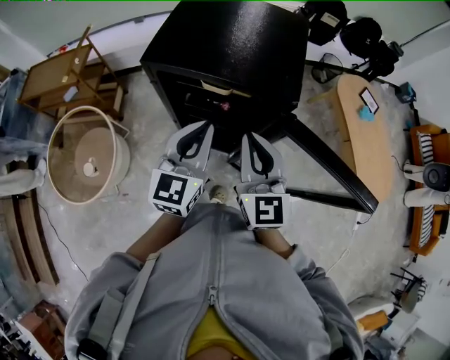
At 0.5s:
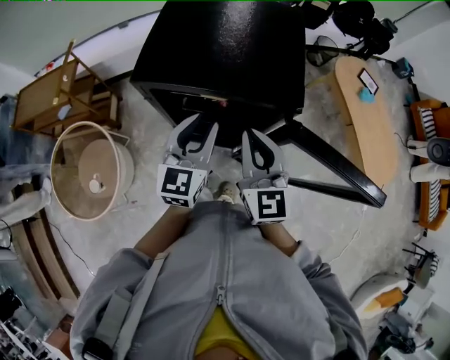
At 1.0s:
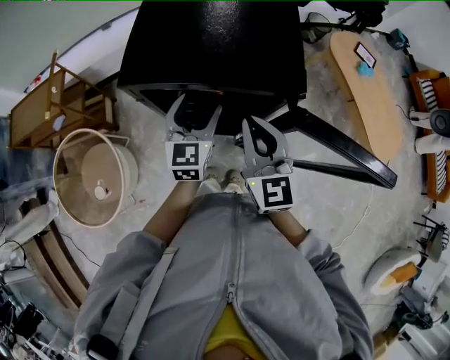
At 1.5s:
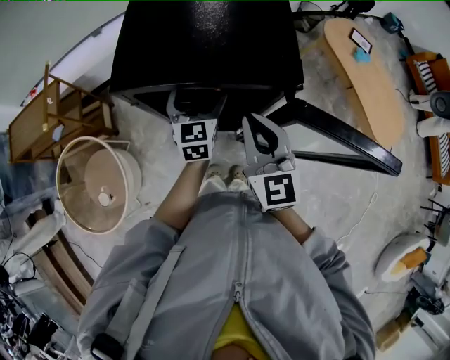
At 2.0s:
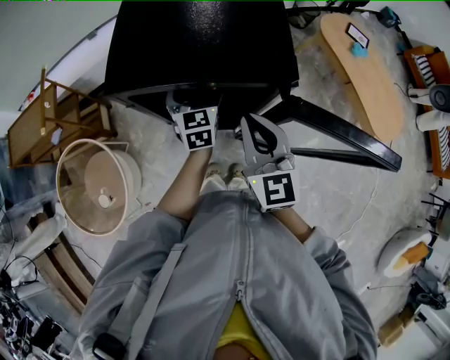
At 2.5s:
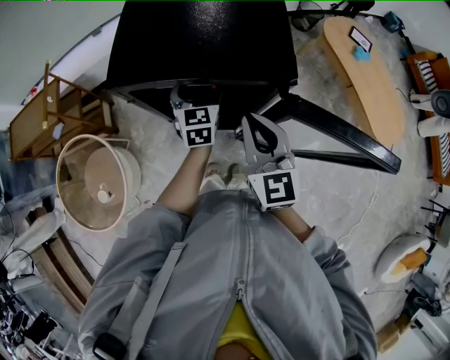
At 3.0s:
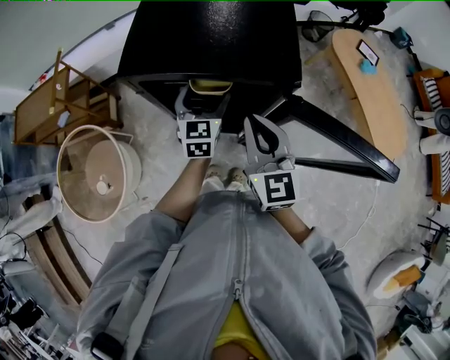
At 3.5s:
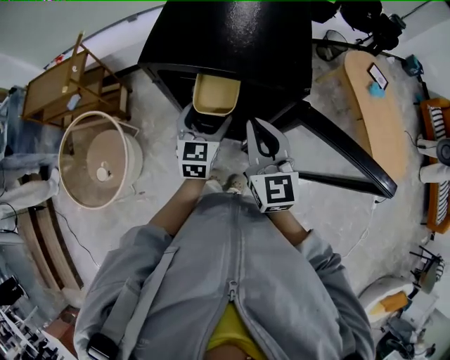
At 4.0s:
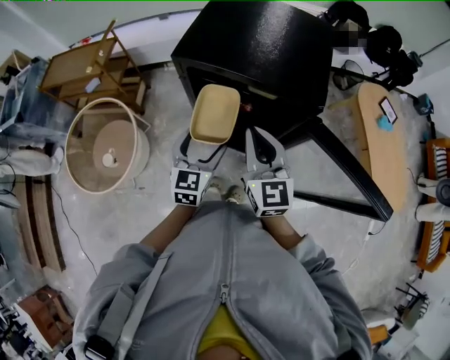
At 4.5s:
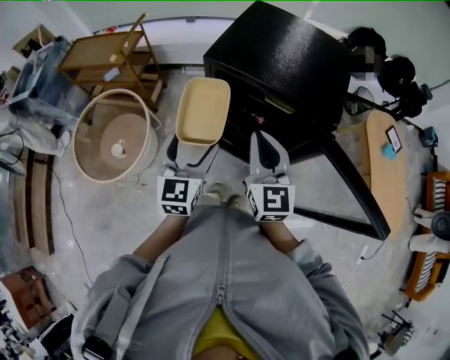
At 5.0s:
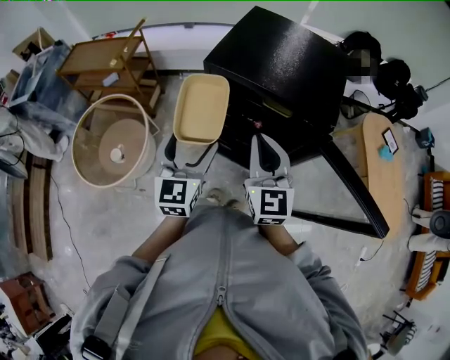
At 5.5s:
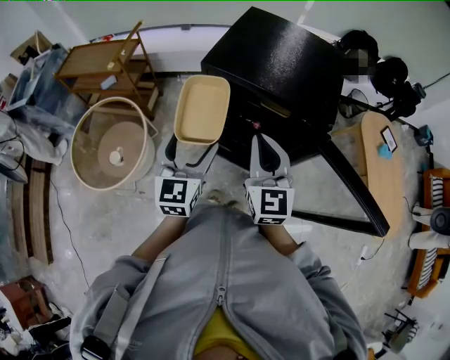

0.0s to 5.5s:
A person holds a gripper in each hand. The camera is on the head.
0.0s to 2.0s: The right gripper moves forward, some 5 cm. Meanwhile the left gripper heads forward and downward, covering roughly 25 cm, and opens up.
2.0s to 3.5s: The left gripper is displaced backward by some 10 cm.
3.5s to 5.5s: The right gripper is displaced to the left by about 5 cm; the left gripper shifts roughly 20 cm to the left, upward and backward.

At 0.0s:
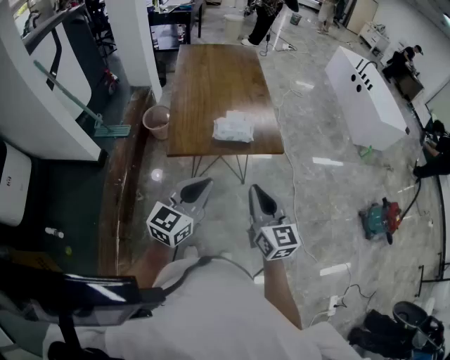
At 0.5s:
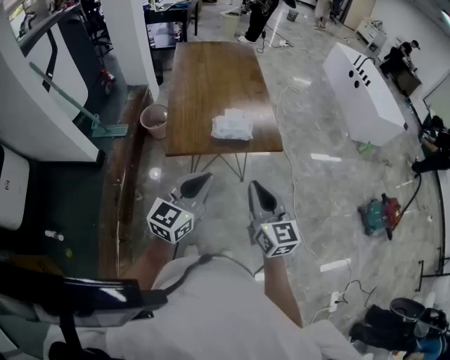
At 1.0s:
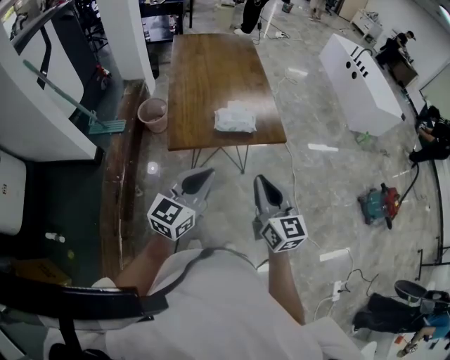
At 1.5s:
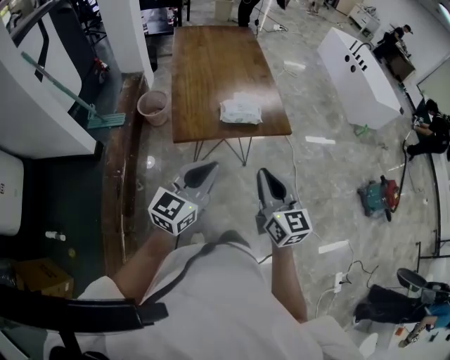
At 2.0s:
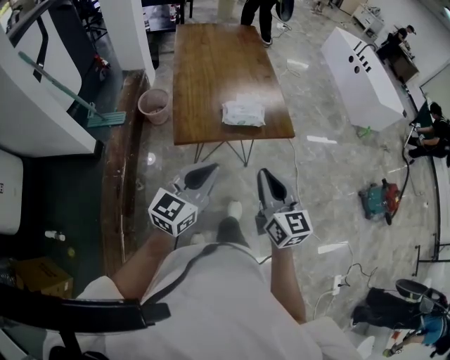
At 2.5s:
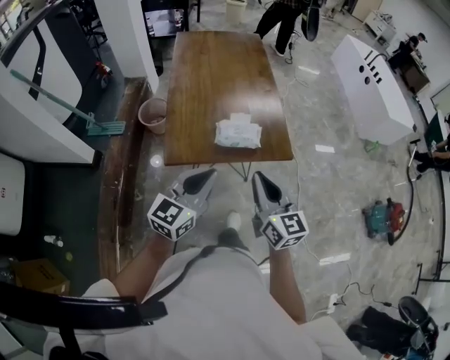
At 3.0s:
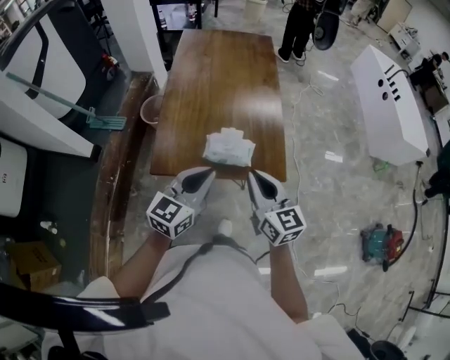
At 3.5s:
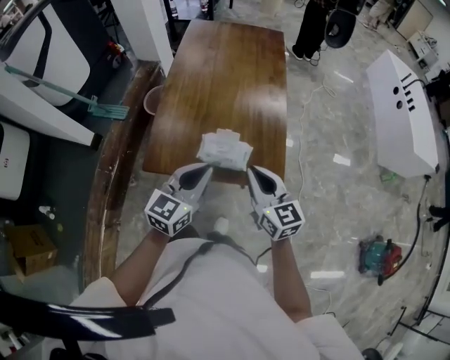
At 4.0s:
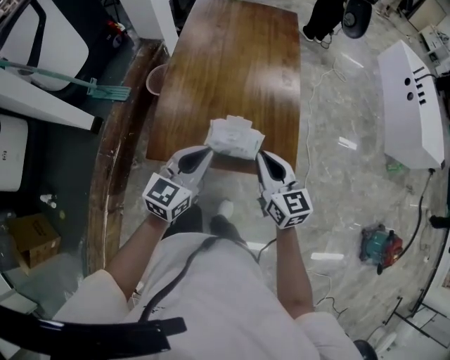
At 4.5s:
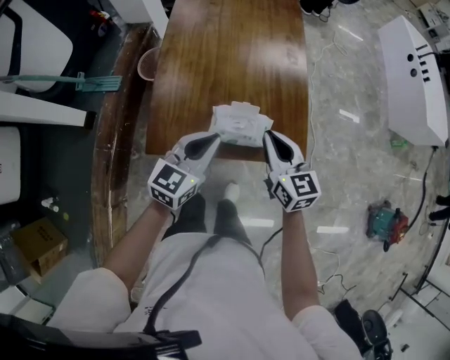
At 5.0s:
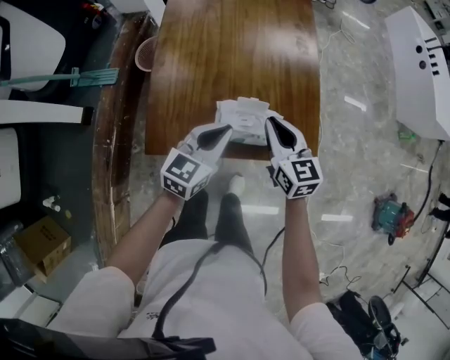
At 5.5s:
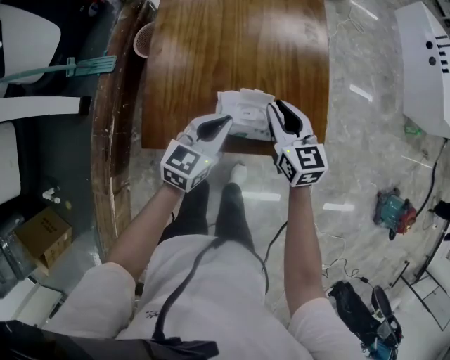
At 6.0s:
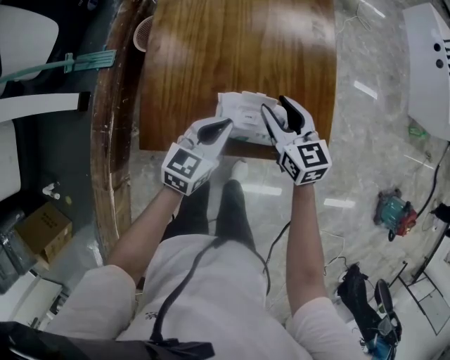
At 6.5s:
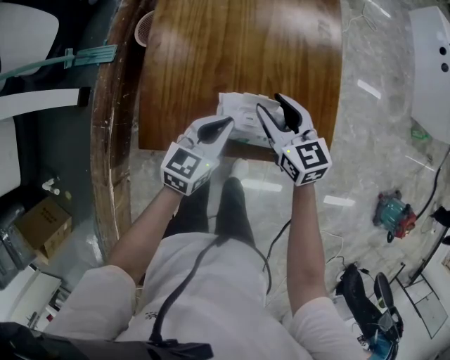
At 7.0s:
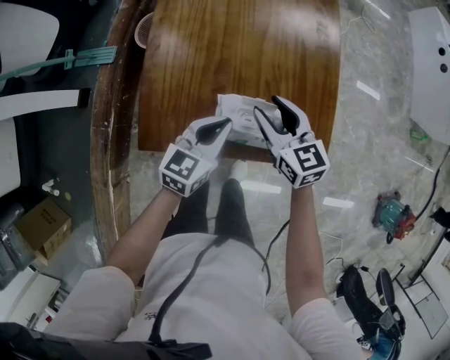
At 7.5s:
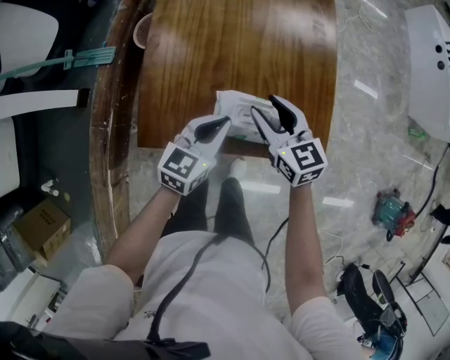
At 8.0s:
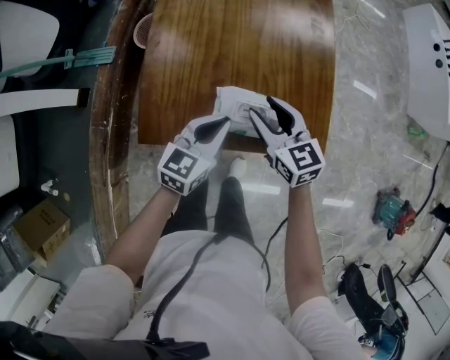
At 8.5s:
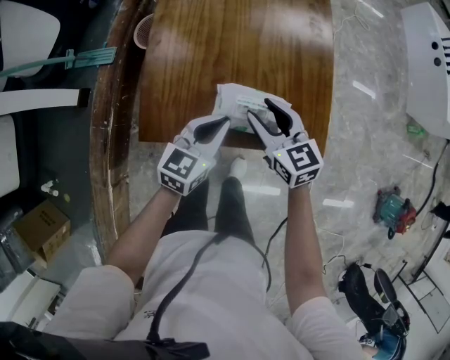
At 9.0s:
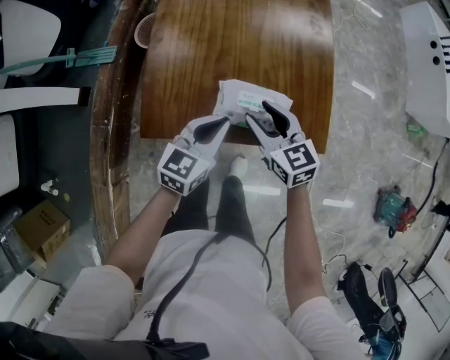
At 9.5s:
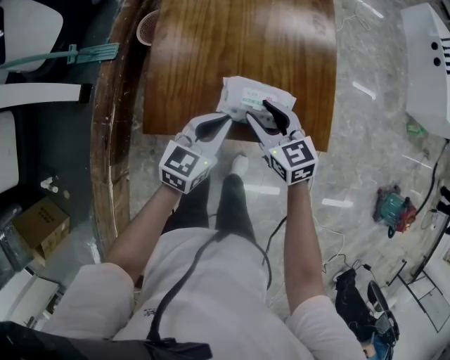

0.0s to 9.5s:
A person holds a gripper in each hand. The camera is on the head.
0.0s to 2.0s: The grippers both shift to the left by roughly 5 cm.
2.0s to 4.0s: The grippers both shift forward by some 30 cm. The right gripper turns by some 20 degrees.
4.0s to 5.5s: The two grippers go about 15 cm downward and forward.
5.5s to 7.5s: The right gripper opens its fingers.
7.5s to 9.5s: The right gripper moves backward, approximately 5 cm.

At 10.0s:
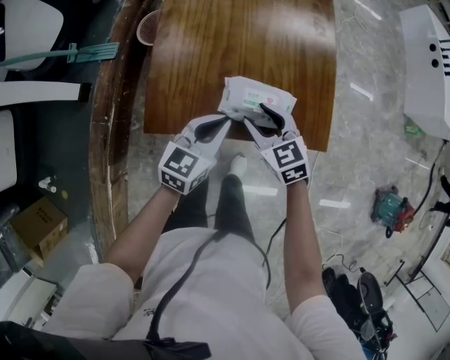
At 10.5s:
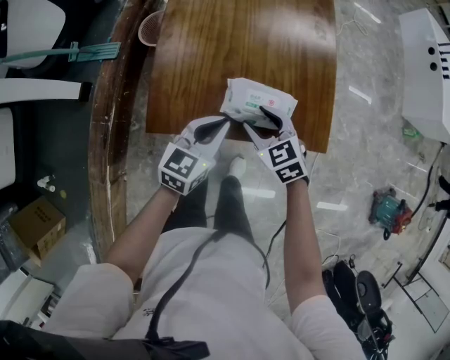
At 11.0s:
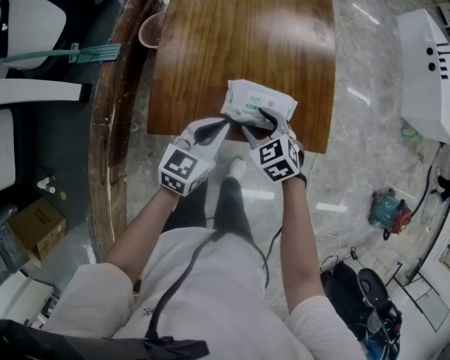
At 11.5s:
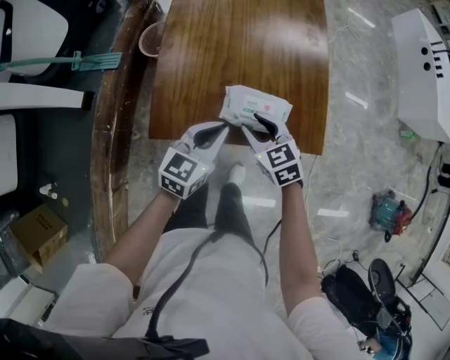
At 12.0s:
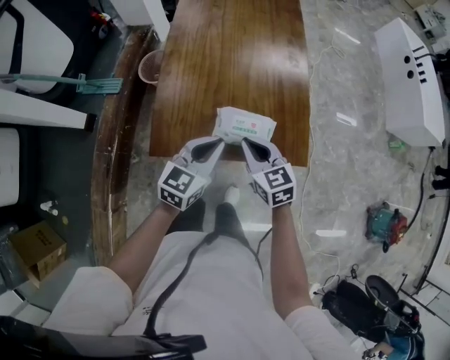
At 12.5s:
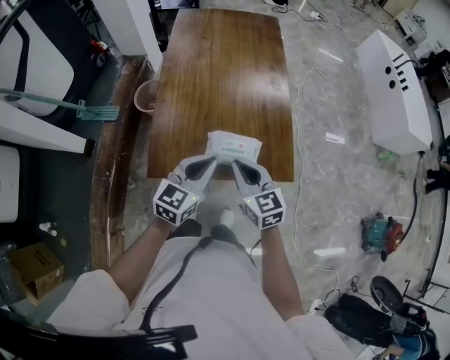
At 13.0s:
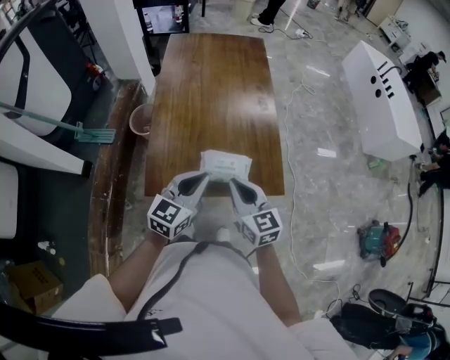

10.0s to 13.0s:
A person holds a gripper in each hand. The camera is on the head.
10.0s to 11.5s: The grippers stay close to where they were, moving slightly.
11.5s to 13.0s: The two grippers go approximately 15 cm upward. The right gripper turns by approximately 30 degrees, and closes.

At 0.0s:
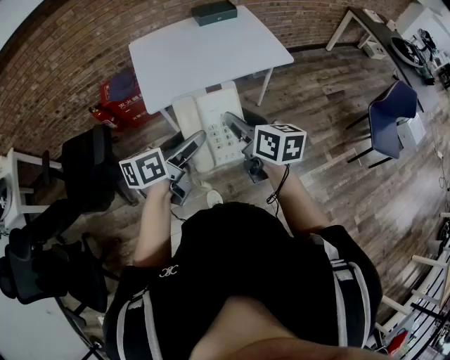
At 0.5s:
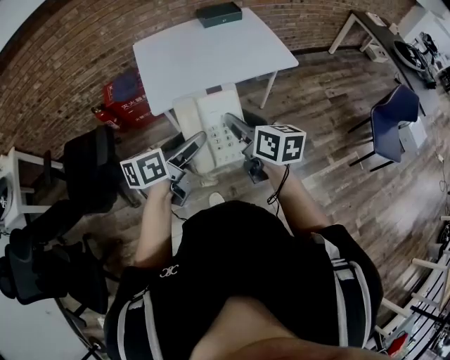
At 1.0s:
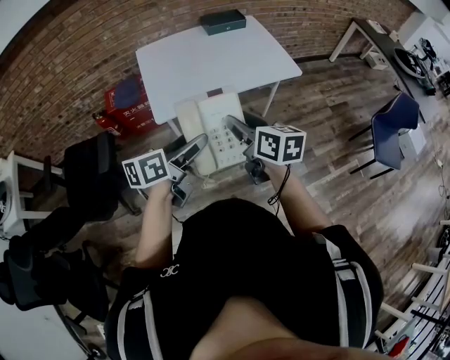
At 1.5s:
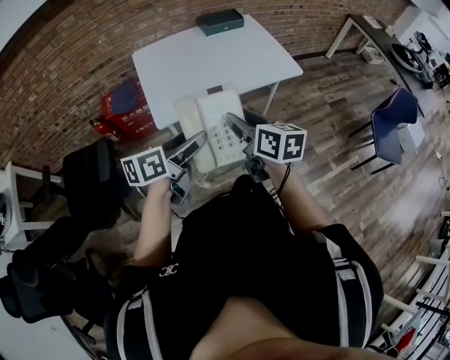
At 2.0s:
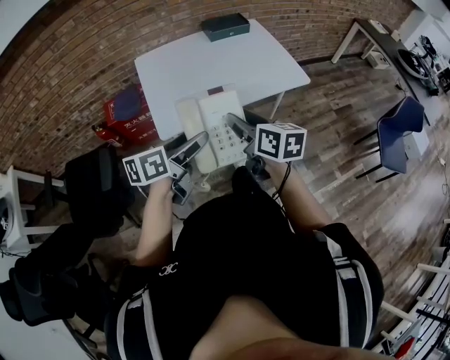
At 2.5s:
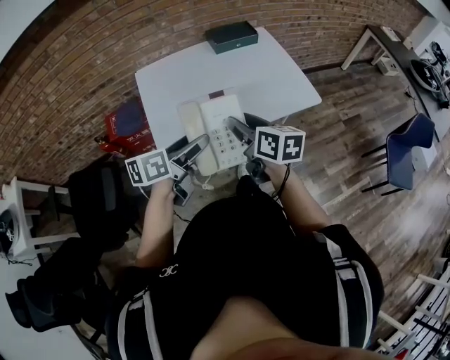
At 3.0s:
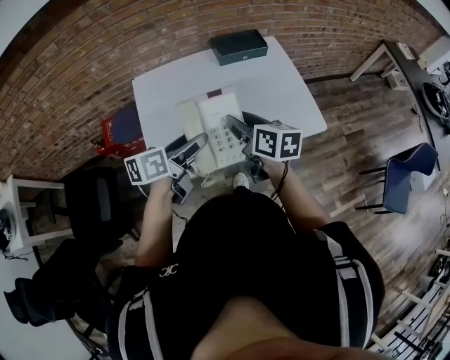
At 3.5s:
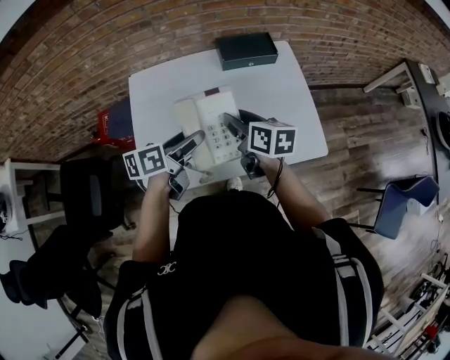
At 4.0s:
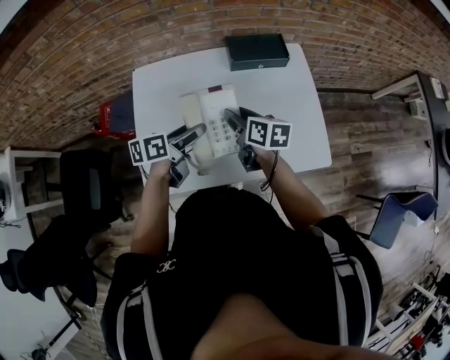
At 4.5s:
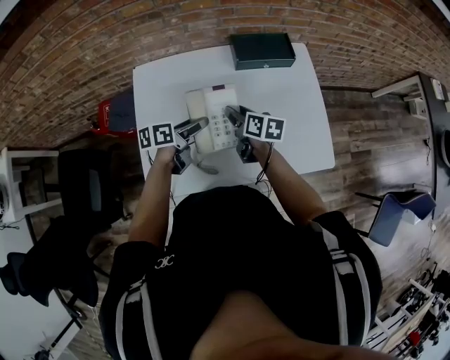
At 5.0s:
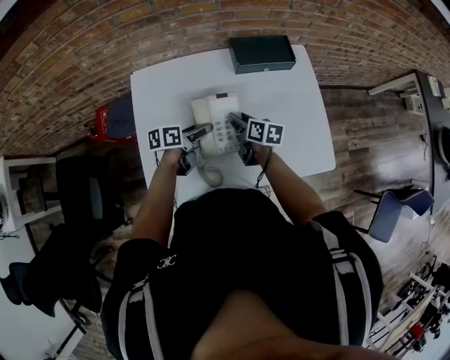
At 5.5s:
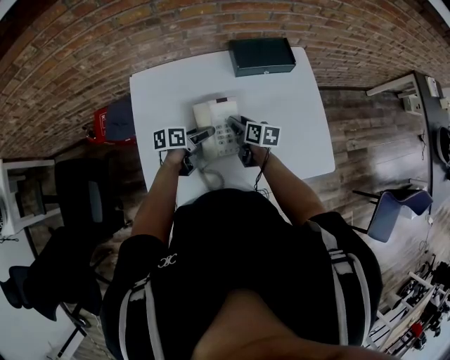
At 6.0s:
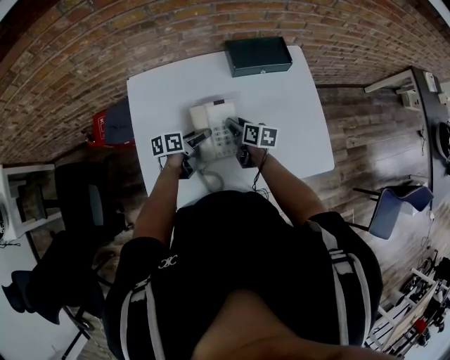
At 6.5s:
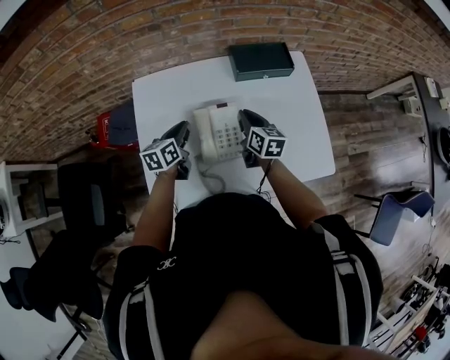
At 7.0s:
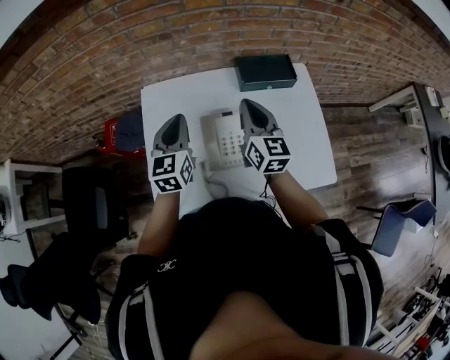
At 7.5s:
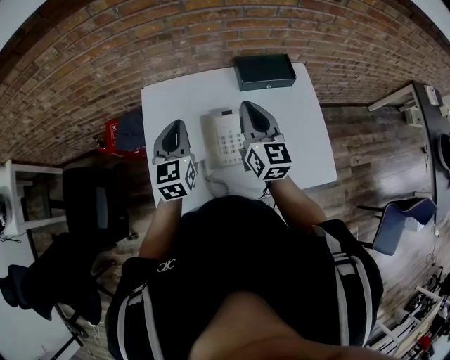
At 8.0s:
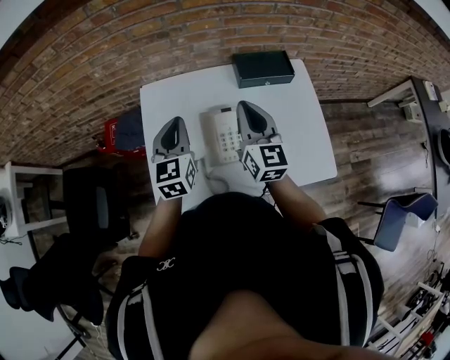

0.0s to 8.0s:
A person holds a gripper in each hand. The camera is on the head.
0.0s to 2.0s: Both grippers move forward and to the left, about 15 cm.
2.0s to 4.0s: The two grippers travel together, forward, approximately 40 cm.
4.0s to 6.0s: Both grippers travel together downward, about 15 cm.
6.0s to 8.0s: The grippers both shift upward by about 25 cm. The left gripper rotates approximately 70 degrees, and closes up. Meanwhile the right gripper angles its fingers upward, by some 30 degrees, and closes.
